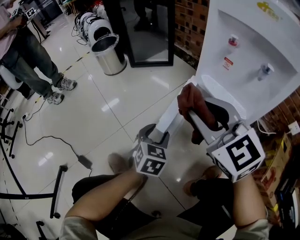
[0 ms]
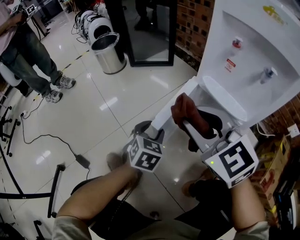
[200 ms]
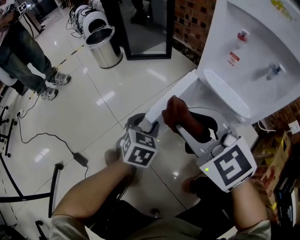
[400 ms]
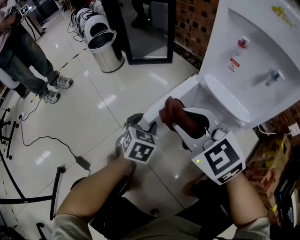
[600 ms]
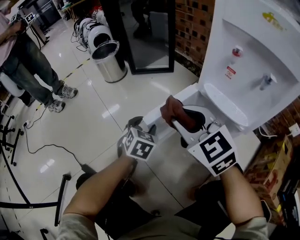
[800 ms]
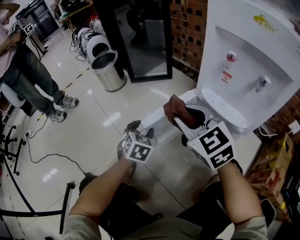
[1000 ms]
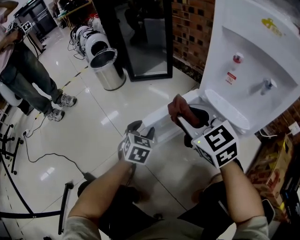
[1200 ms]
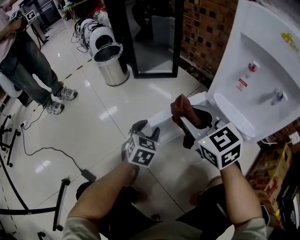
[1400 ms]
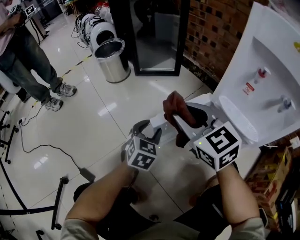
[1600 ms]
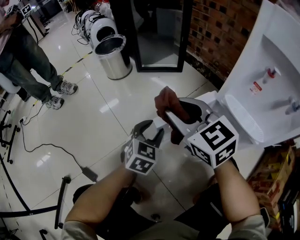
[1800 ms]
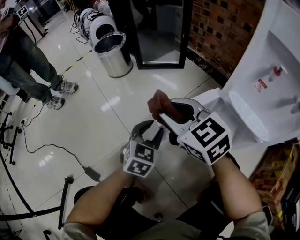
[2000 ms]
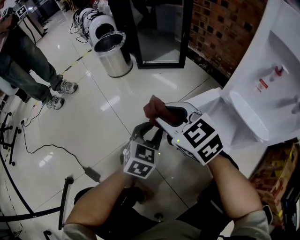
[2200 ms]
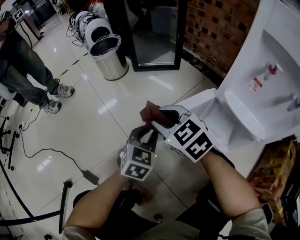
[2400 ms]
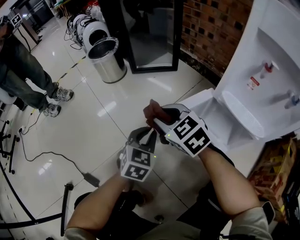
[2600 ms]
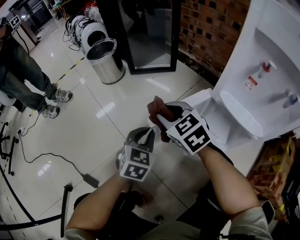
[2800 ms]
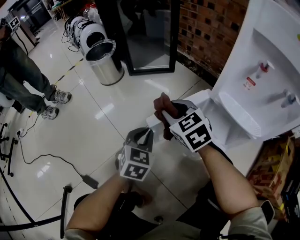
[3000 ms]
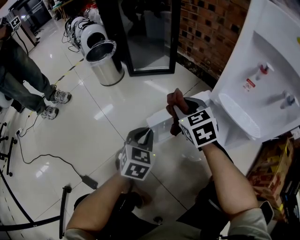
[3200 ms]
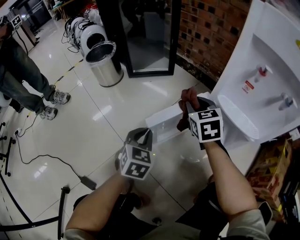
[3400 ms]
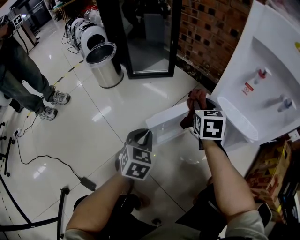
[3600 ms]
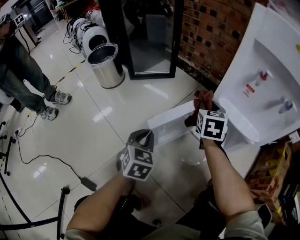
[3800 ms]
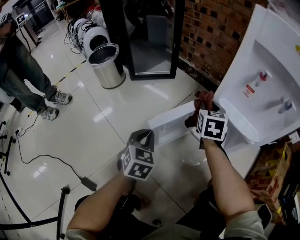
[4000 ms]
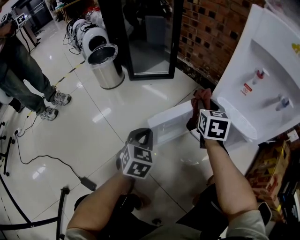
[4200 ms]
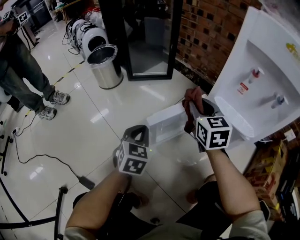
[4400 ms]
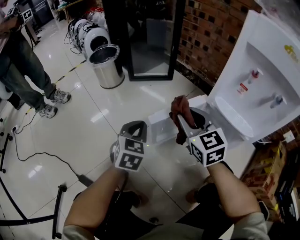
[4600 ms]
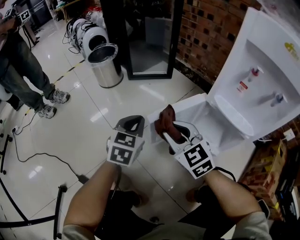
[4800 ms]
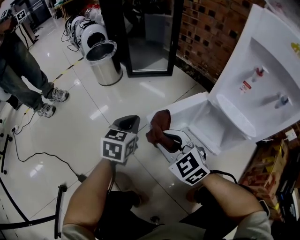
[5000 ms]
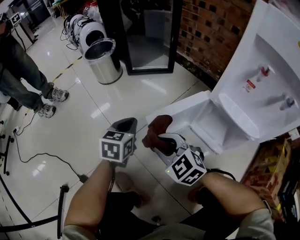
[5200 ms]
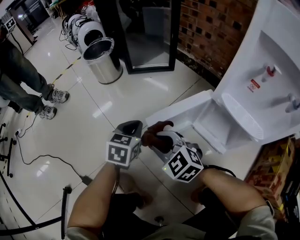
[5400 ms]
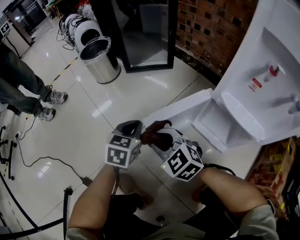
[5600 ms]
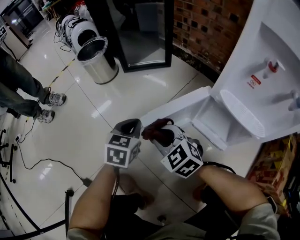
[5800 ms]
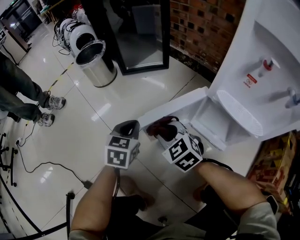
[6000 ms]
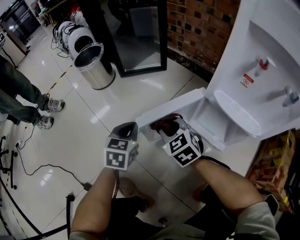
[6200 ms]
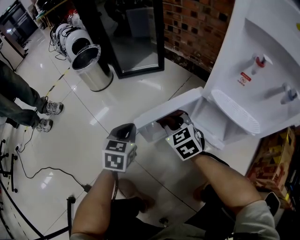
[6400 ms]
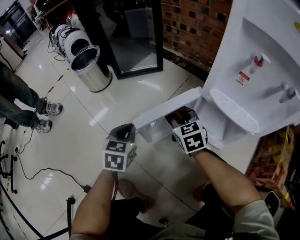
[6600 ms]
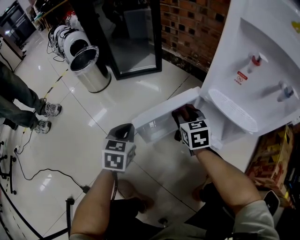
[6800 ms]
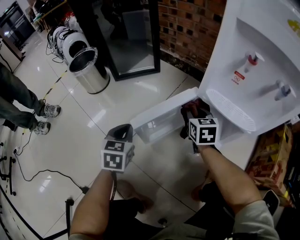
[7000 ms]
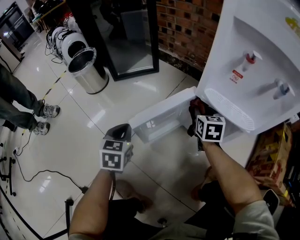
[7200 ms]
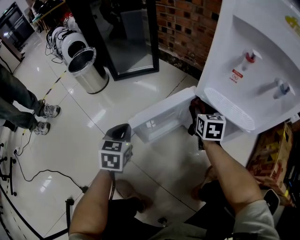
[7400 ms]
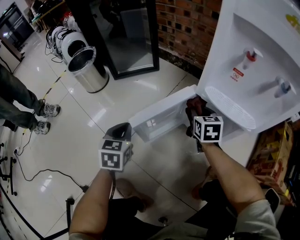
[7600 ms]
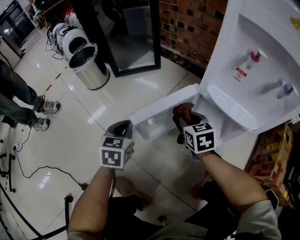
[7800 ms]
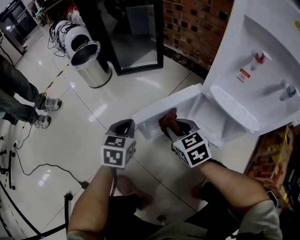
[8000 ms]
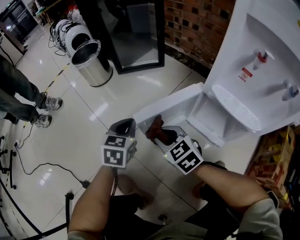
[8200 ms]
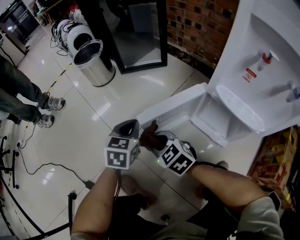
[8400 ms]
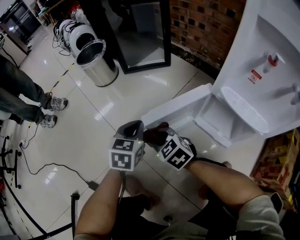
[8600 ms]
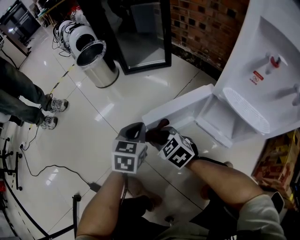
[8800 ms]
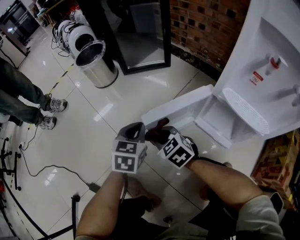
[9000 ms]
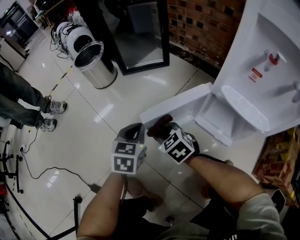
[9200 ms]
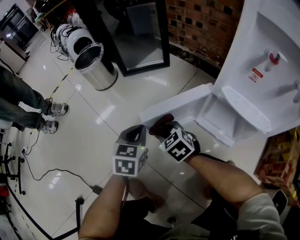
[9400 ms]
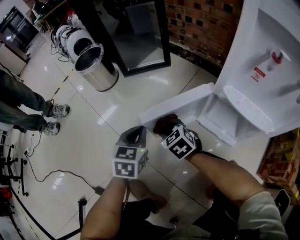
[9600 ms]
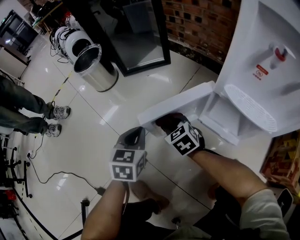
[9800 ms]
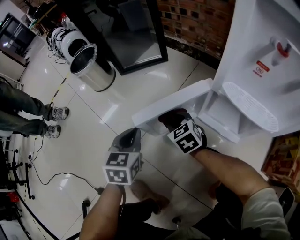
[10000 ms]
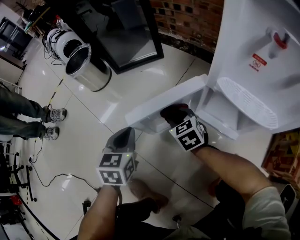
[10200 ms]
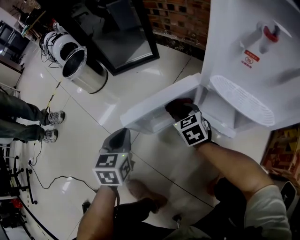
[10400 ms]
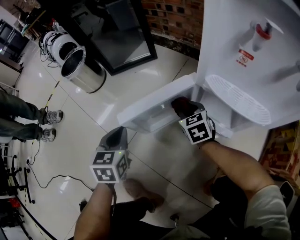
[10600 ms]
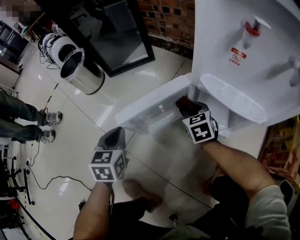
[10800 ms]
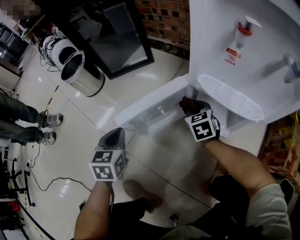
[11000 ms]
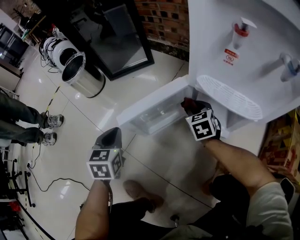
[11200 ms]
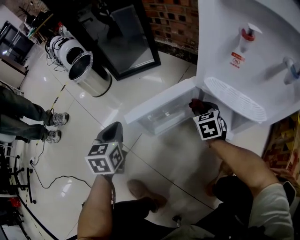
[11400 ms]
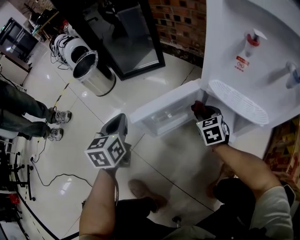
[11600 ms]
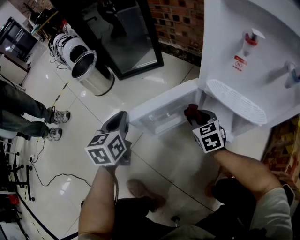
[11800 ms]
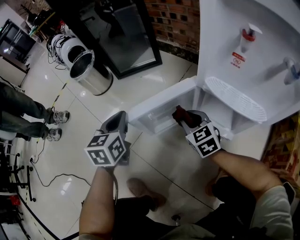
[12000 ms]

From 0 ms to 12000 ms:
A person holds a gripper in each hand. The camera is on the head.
From 0 ms to 1600 ms: The right gripper is displaced forward, to the left and downward by some 15 cm. Meanwhile the left gripper goes about 15 cm forward and to the left.
From 1600 ms to 3000 ms: The right gripper is displaced downward and forward by about 10 cm; the left gripper closes.
From 3000 ms to 4400 ms: The right gripper moves to the right, approximately 10 cm, and swivels roughly 30 degrees.
From 4400 ms to 6000 ms: The left gripper shifts approximately 5 cm forward; the right gripper is displaced to the left and downward by about 20 cm, and changes its angle by some 30 degrees.
From 6000 ms to 7600 ms: The right gripper heads to the right, covering some 20 cm, and changes its angle by about 50 degrees.
From 7600 ms to 9000 ms: The right gripper moves roughly 25 cm, and changes its angle by roughly 50 degrees.
From 9000 ms to 10400 ms: The right gripper is displaced to the right and forward by roughly 20 cm, and changes its angle by roughly 30 degrees.
From 10400 ms to 12000 ms: The right gripper is displaced backward by some 5 cm, and goes to the right and returns, approximately 10 cm each way. The left gripper shifts roughly 5 cm upward.

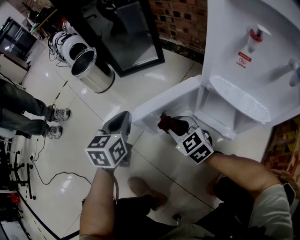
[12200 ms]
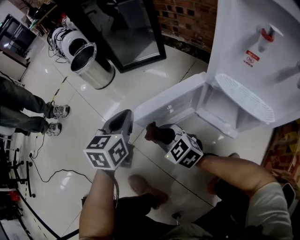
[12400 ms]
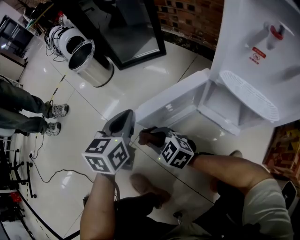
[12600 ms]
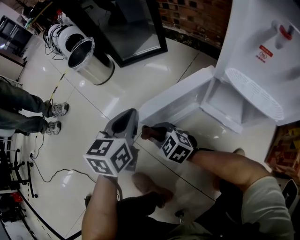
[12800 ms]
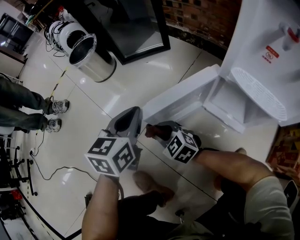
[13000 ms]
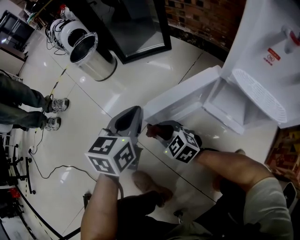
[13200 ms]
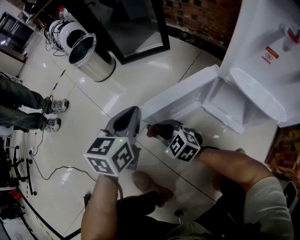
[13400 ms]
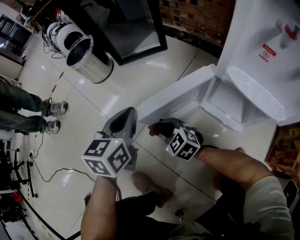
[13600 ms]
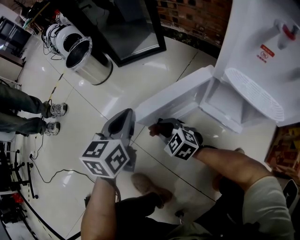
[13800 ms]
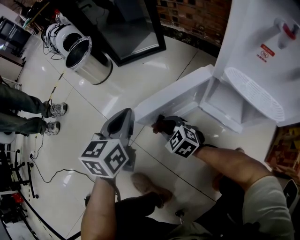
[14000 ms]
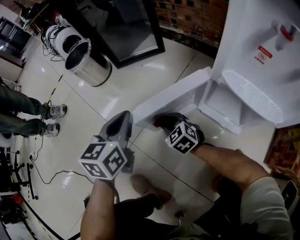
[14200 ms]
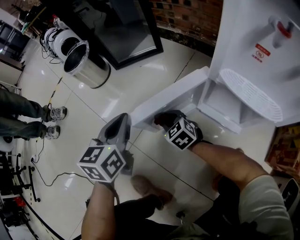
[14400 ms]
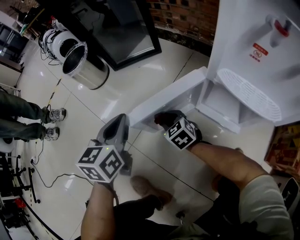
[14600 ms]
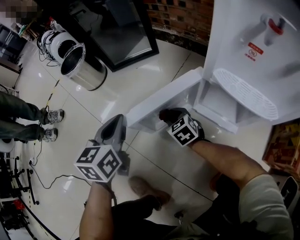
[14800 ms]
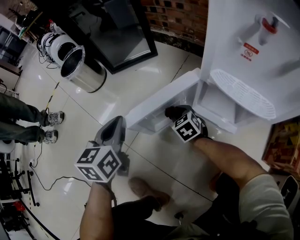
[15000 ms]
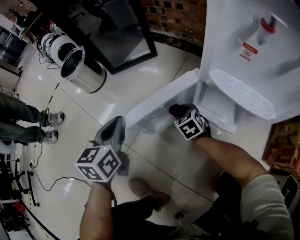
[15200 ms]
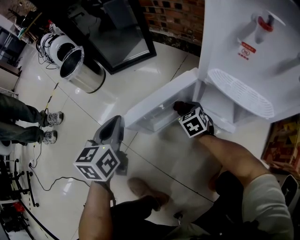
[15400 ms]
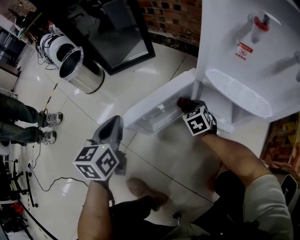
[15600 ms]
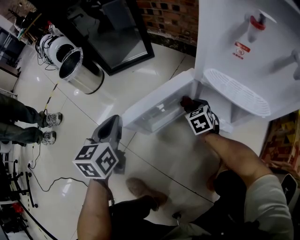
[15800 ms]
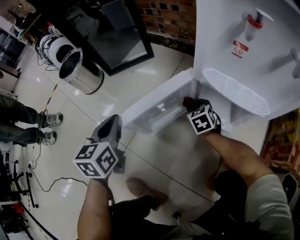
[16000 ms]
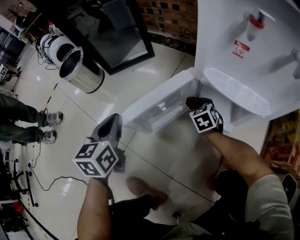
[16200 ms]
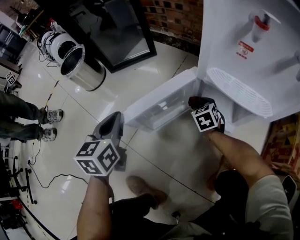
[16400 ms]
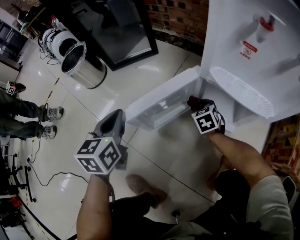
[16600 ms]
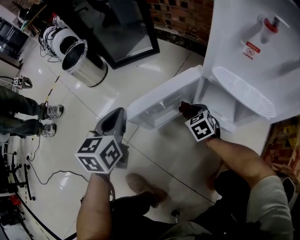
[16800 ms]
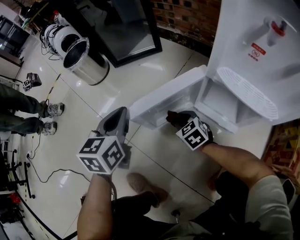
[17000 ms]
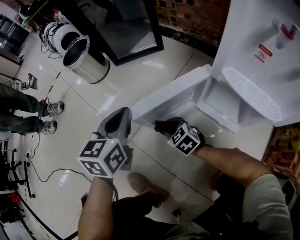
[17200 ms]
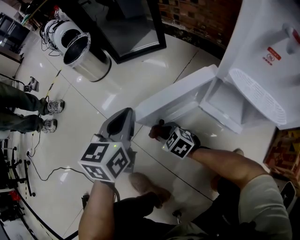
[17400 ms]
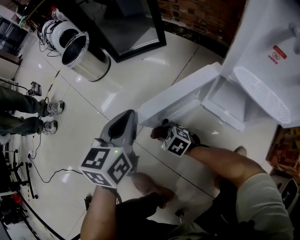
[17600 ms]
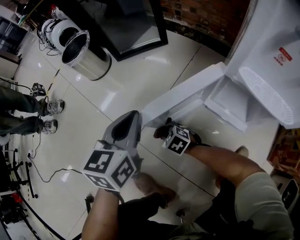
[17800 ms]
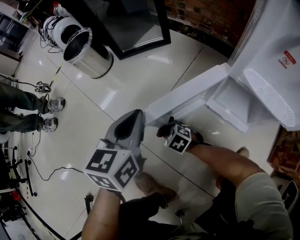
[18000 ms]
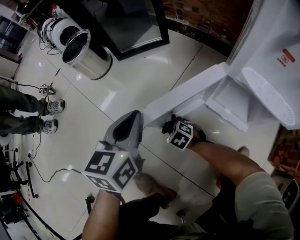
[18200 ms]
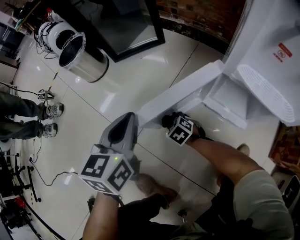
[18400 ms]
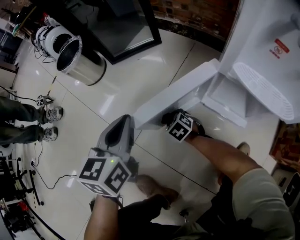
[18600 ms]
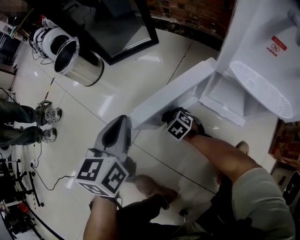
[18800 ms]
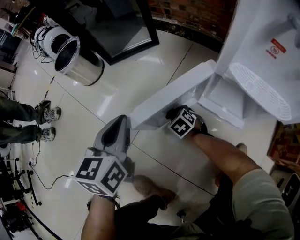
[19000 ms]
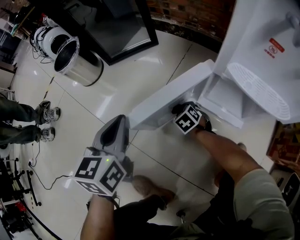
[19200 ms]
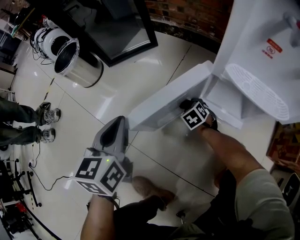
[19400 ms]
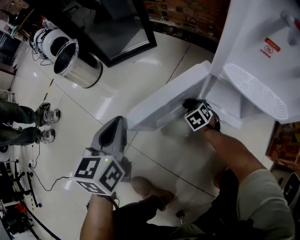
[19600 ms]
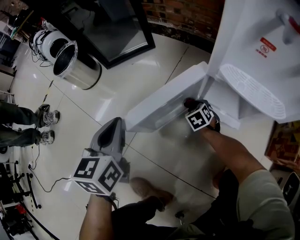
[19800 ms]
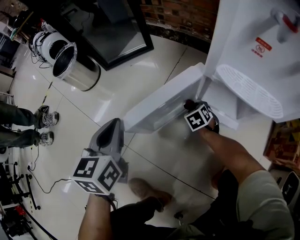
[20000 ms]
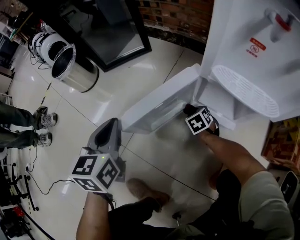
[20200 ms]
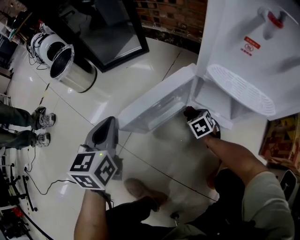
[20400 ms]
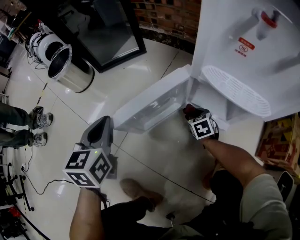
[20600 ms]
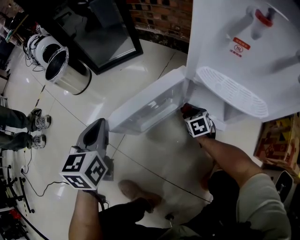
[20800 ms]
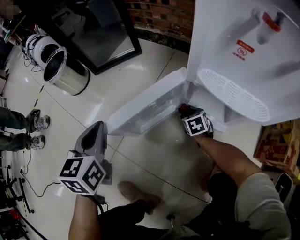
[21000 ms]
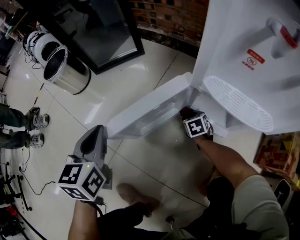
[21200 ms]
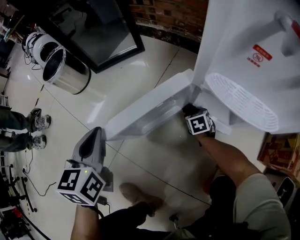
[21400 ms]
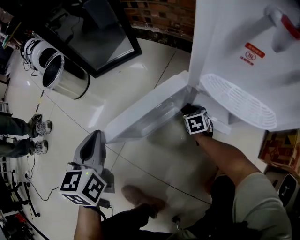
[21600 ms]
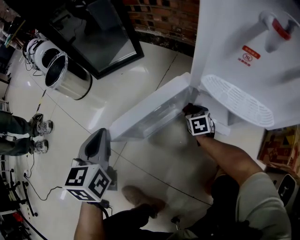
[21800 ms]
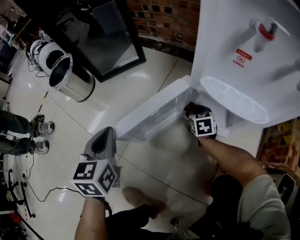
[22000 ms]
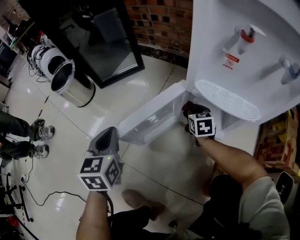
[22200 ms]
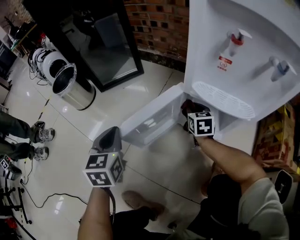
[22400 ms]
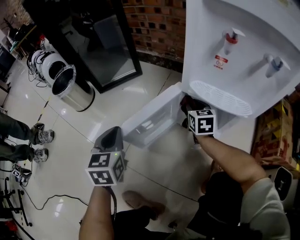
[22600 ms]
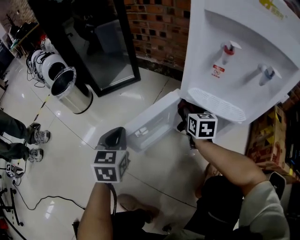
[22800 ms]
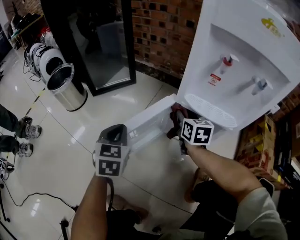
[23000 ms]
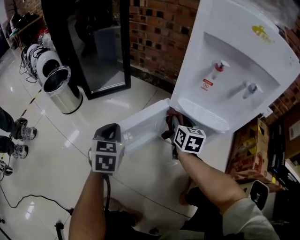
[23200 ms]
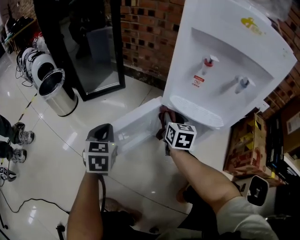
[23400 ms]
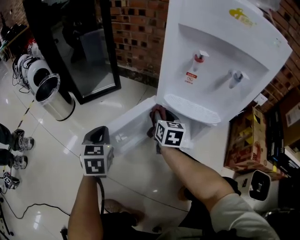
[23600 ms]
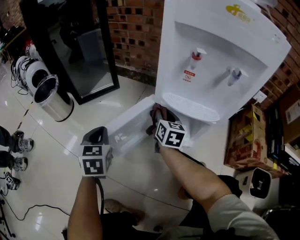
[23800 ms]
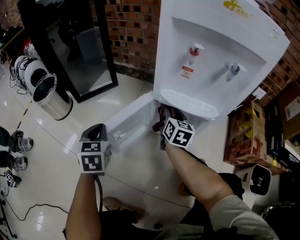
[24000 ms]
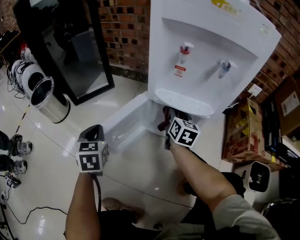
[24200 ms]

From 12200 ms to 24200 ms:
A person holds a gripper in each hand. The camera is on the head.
From 12200 ms to 13800 ms: The right gripper goes approximately 10 cm to the left and downward.
From 13800 ms to 15200 ms: The right gripper travels to the right and forward by about 15 cm, and swivels about 30 degrees.
From 15200 ms to 16600 ms: The right gripper shifts approximately 10 cm to the right.
From 16600 ms to 18200 ms: The right gripper moves about 25 cm, and changes its angle by about 40 degrees.
From 18200 ms to 19800 ms: The right gripper shifts by approximately 20 cm, and rotates some 40 degrees.
From 19800 ms to 21200 ms: The right gripper shifts by some 5 cm.
From 21200 ms to 22600 ms: The right gripper moves upward, some 20 cm, and changes its angle by approximately 30 degrees.
From 22600 ms to 24200 ms: The right gripper moves upward and to the right, approximately 10 cm, and swivels some 30 degrees.
